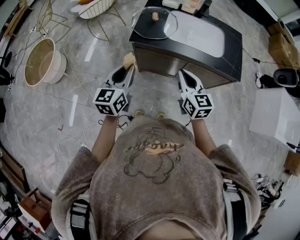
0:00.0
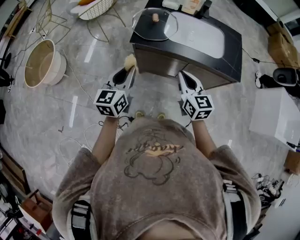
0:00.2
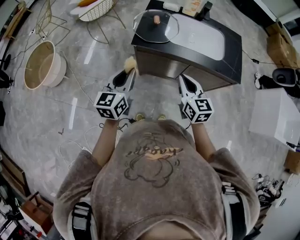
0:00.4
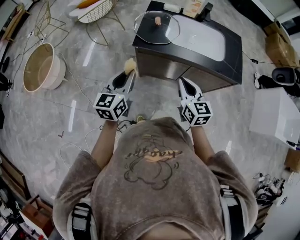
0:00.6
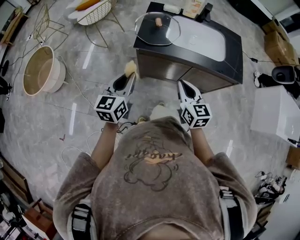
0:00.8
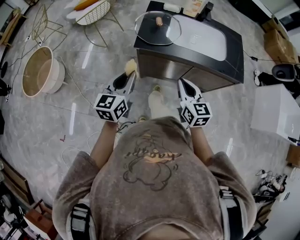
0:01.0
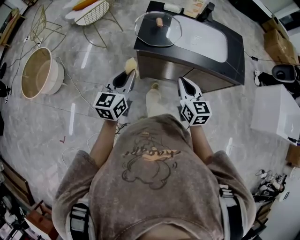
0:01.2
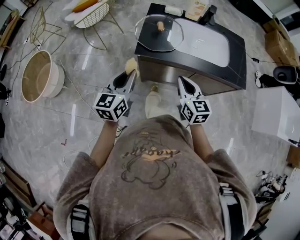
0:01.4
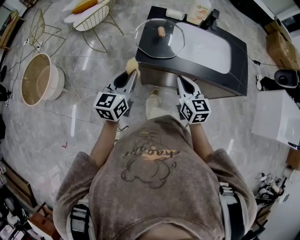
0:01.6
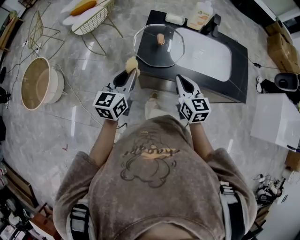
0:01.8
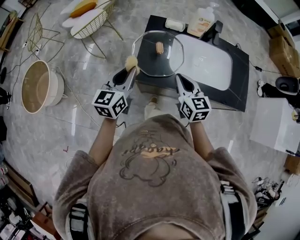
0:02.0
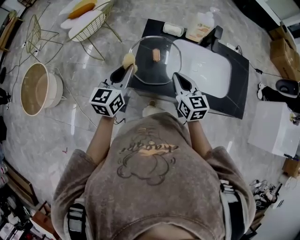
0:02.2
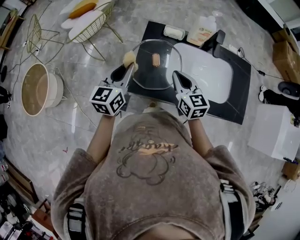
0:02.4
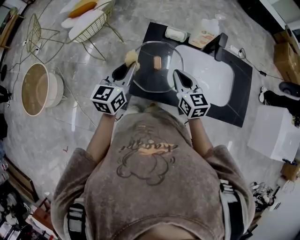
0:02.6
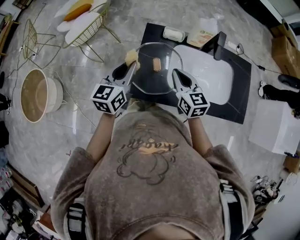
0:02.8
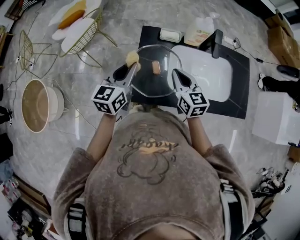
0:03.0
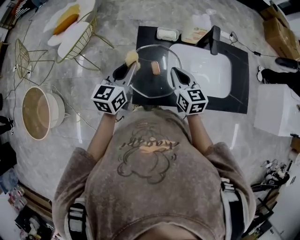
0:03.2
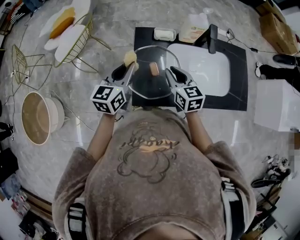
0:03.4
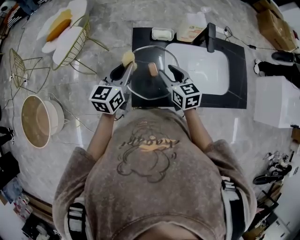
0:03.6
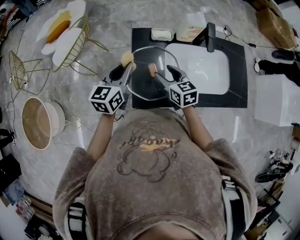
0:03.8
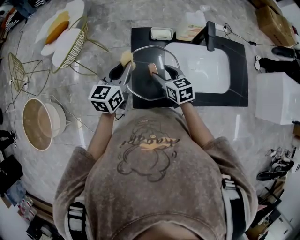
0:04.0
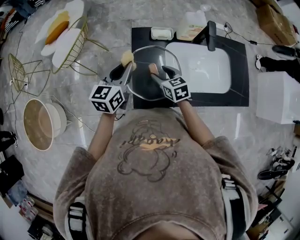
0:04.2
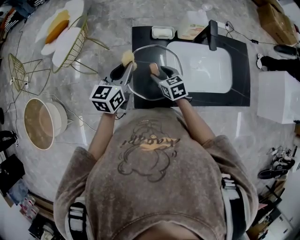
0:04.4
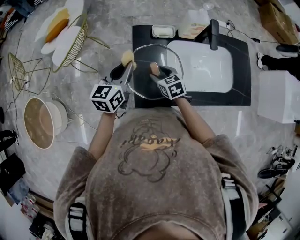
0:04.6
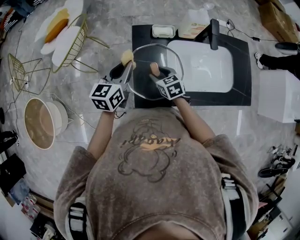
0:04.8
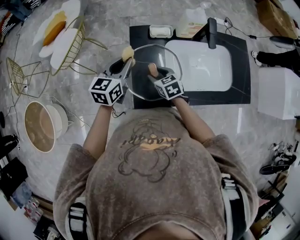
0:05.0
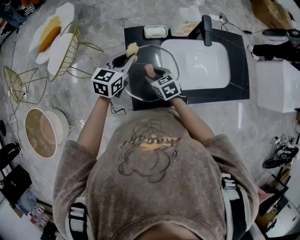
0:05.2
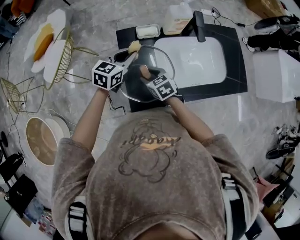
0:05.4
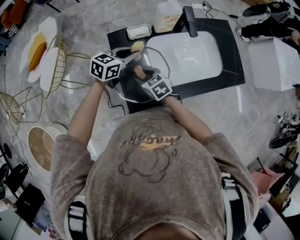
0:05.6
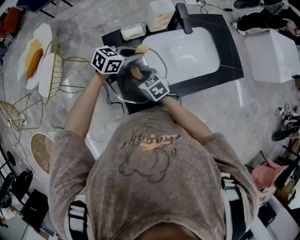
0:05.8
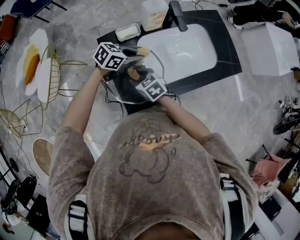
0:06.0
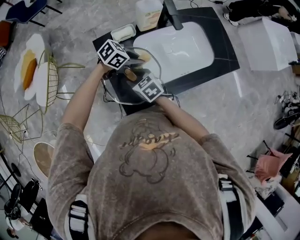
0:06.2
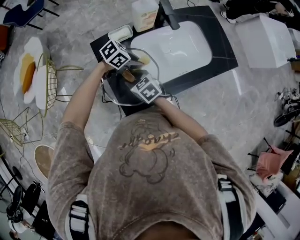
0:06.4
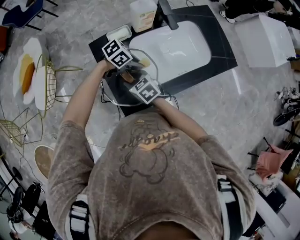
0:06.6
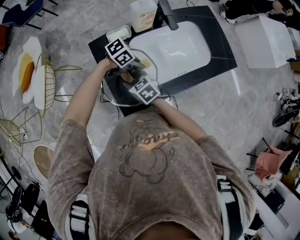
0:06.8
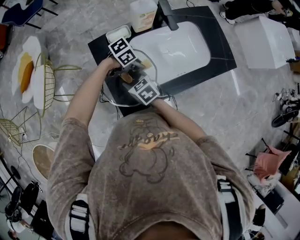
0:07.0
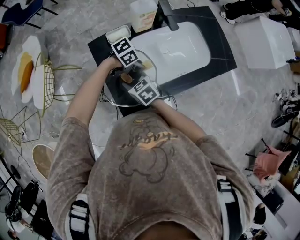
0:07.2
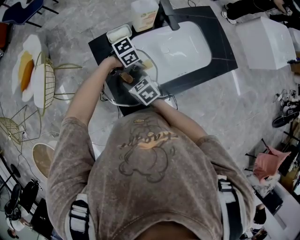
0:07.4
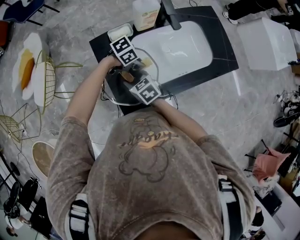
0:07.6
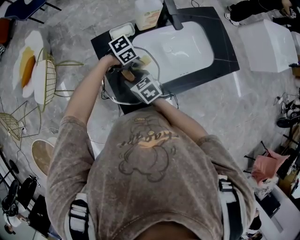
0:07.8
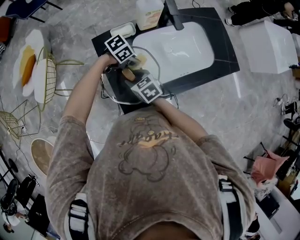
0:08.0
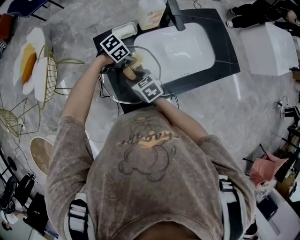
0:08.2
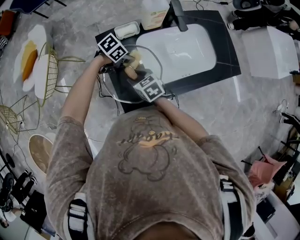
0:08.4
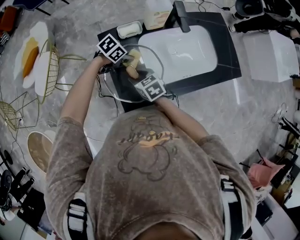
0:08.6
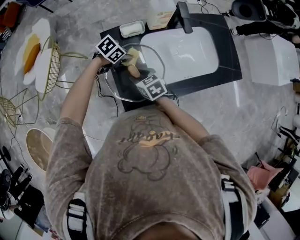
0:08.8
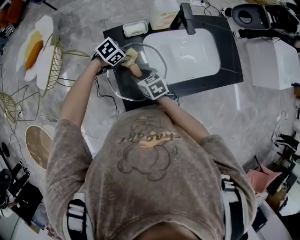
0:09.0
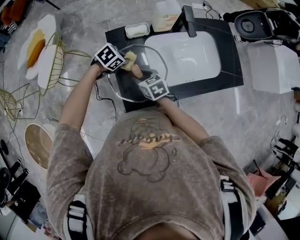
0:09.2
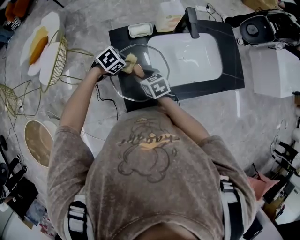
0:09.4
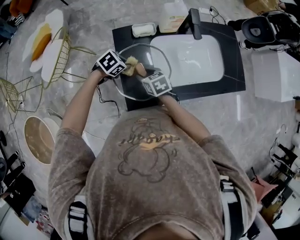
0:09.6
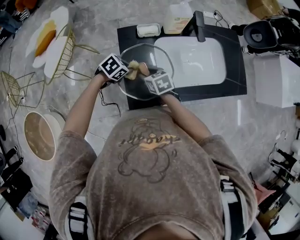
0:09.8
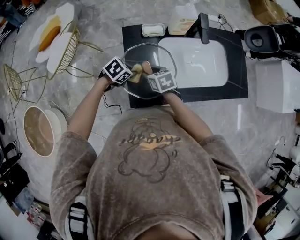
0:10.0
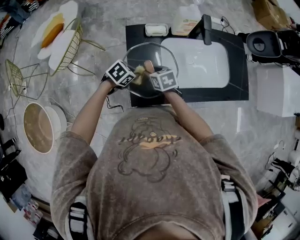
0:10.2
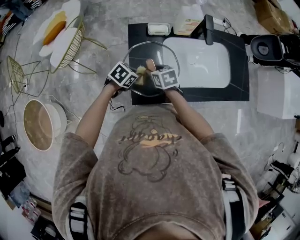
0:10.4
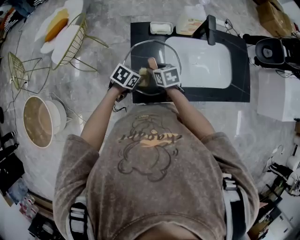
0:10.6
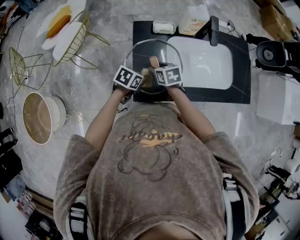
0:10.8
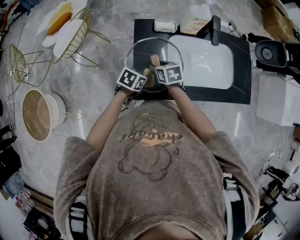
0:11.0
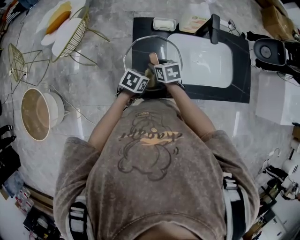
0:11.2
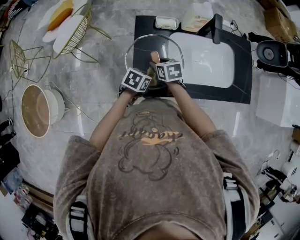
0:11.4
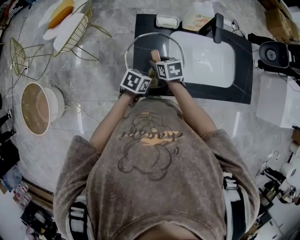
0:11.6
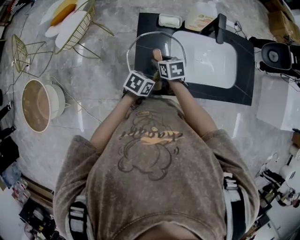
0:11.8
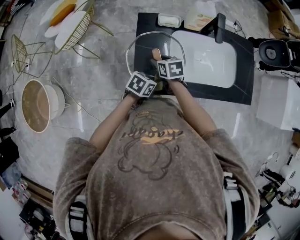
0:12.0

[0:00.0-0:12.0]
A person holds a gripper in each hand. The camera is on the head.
0:00.0 to 0:01.6: Both grippers travel together forward and to the left, roughly 15 cm.
0:01.6 to 0:03.0: The grippers both shift forward by about 30 cm.
0:03.0 to 0:04.4: The right gripper goes roughly 15 cm downward and to the left, changes its angle by about 20 degrees, and opens, while the left gripper goes roughly 5 cm forward.
0:04.4 to 0:06.0: The left gripper changes place by some 20 cm, and changes its angle by approximately 70 degrees.
0:06.0 to 0:07.6: The left gripper travels downward by about 5 cm, and changes its angle by some 30 degrees.
0:07.6 to 0:09.0: The left gripper changes place by approximately 10 cm, and changes its angle by approximately 20 degrees.
0:09.0 to 0:10.4: The left gripper shifts by about 10 cm, and swivels some 20 degrees.
0:10.4 to 0:12.0: The left gripper is displaced to the right and backward by about 10 cm.

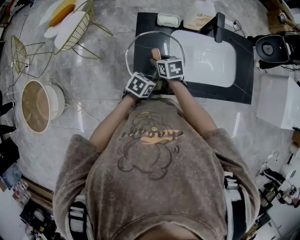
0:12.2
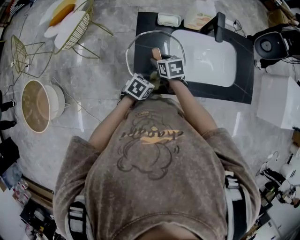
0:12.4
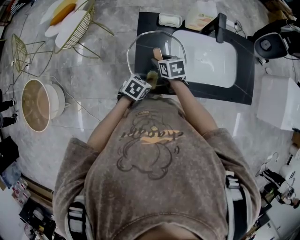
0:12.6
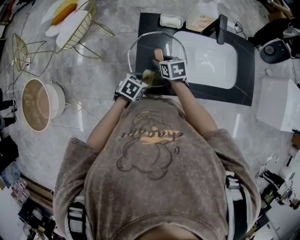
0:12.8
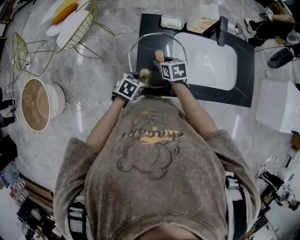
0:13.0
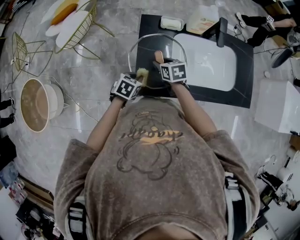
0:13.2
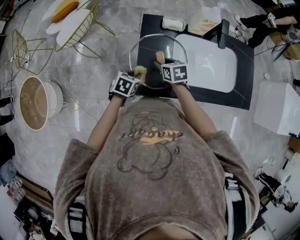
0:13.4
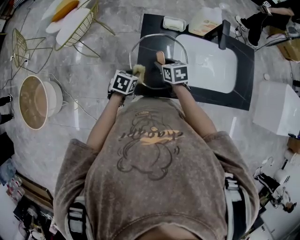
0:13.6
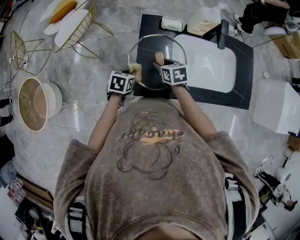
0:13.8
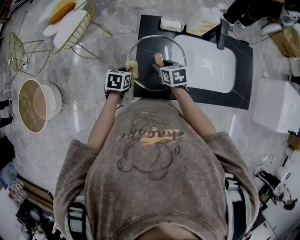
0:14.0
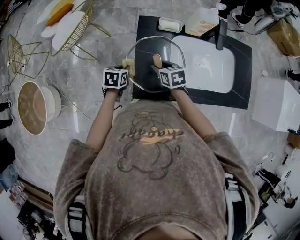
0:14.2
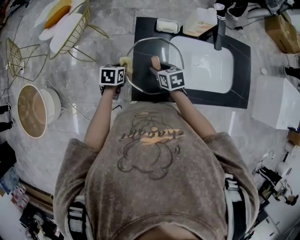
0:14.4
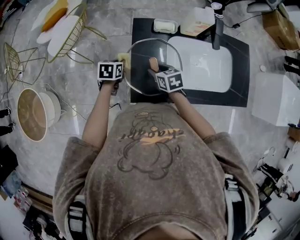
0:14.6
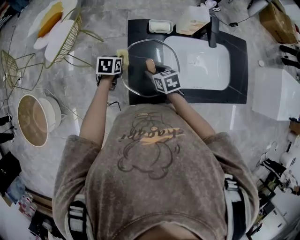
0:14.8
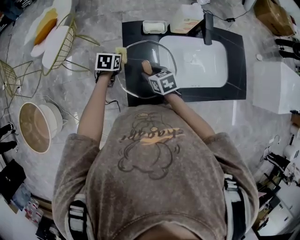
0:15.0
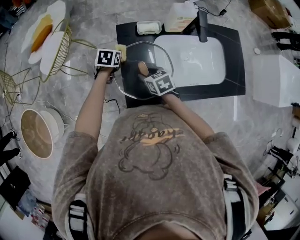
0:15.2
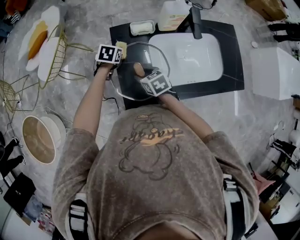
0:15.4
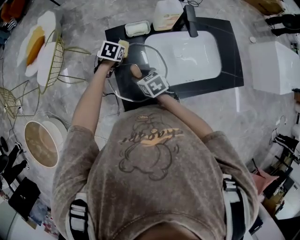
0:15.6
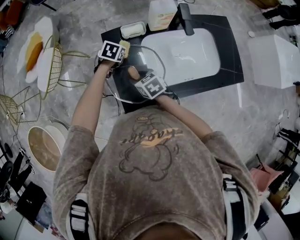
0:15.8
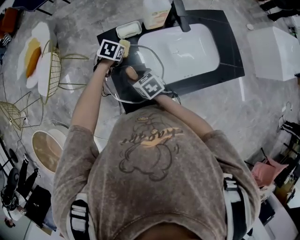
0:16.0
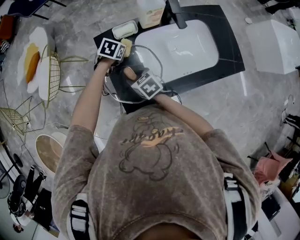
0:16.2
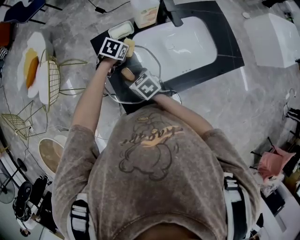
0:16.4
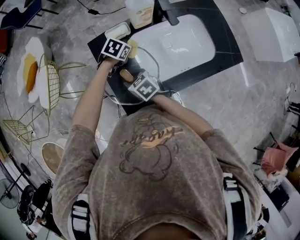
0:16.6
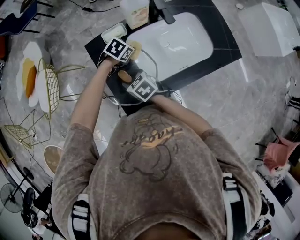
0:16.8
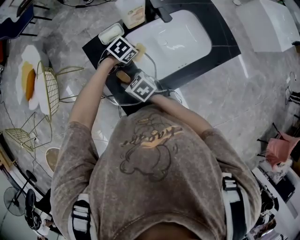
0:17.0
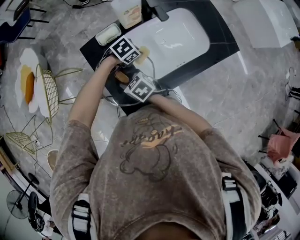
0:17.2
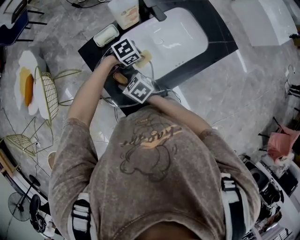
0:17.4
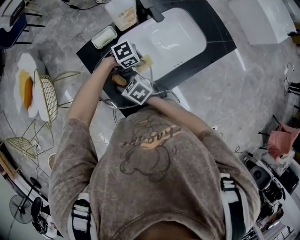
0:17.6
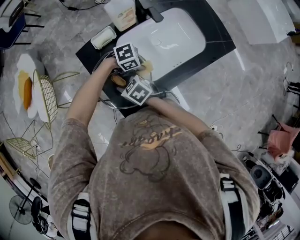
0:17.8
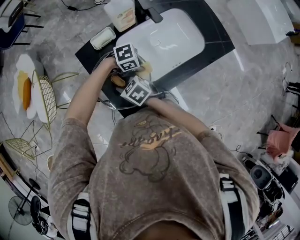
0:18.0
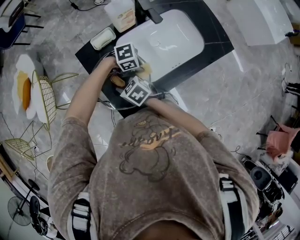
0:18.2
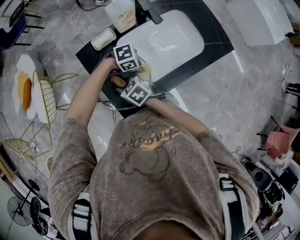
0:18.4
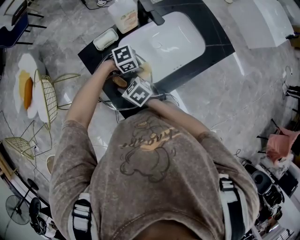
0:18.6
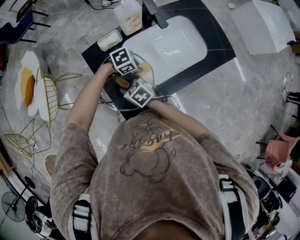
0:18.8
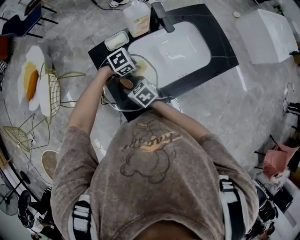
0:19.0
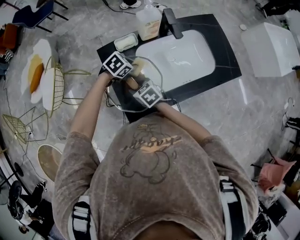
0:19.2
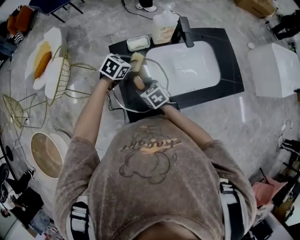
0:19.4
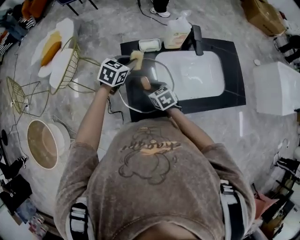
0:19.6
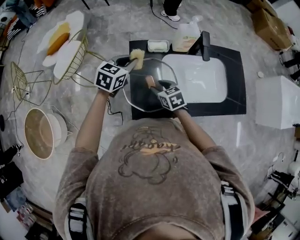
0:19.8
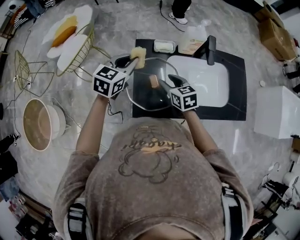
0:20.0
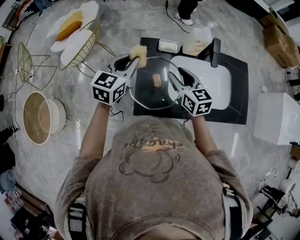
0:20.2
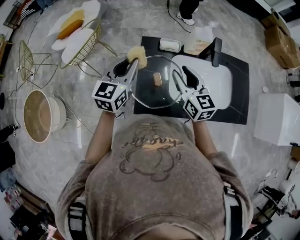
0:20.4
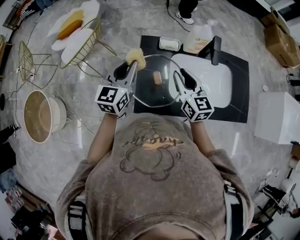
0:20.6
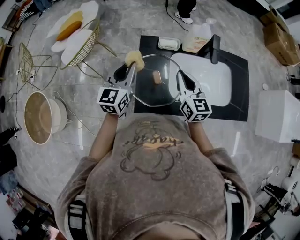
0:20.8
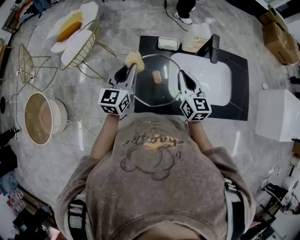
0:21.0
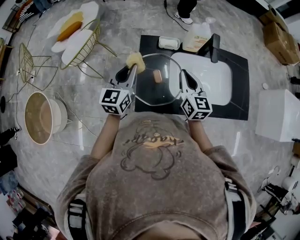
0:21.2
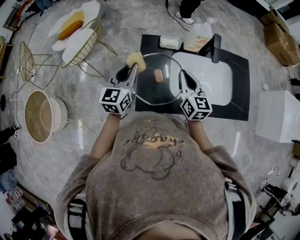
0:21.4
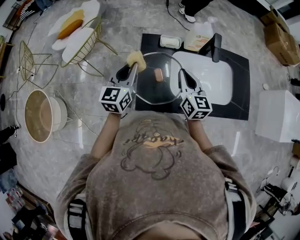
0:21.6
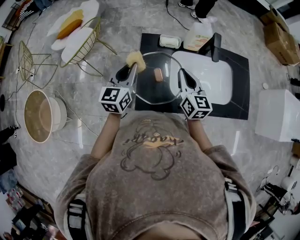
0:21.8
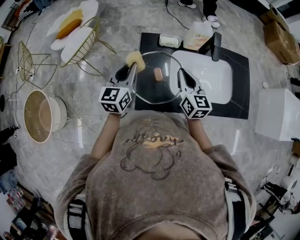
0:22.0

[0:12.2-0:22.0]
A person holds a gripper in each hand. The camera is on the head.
0:12.2 to 0:13.6: The left gripper heads to the left, covering some 10 cm.
0:13.6 to 0:15.0: The left gripper shifts about 15 cm forward.
0:15.0 to 0:16.4: The left gripper goes roughly 20 cm to the right, and rotates approximately 40 degrees.
0:16.4 to 0:17.8: The left gripper shifts by approximately 20 cm, and turns by some 60 degrees.
0:17.8 to 0:19.2: The left gripper shifts by about 15 cm, and swivels approximately 40 degrees.
0:19.2 to 0:20.6: The two grippers go about 20 cm upward. The right gripper tips its fingers upward by about 40 degrees, and closes its fingers. Meanwhile the left gripper tips its fingers upward by about 50 degrees.
0:20.6 to 0:22.0: The right gripper closes up.

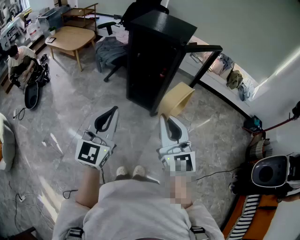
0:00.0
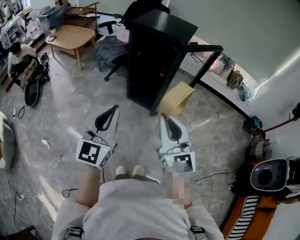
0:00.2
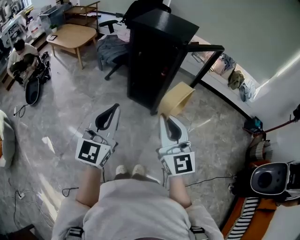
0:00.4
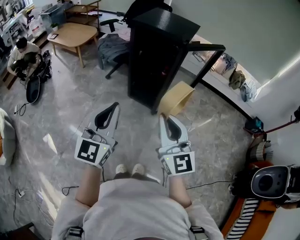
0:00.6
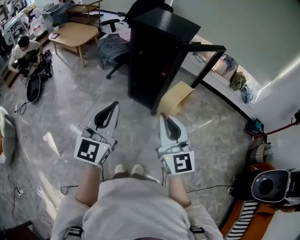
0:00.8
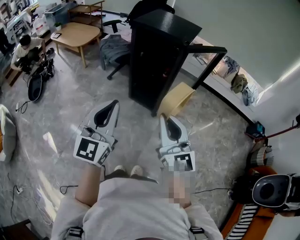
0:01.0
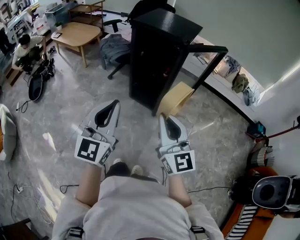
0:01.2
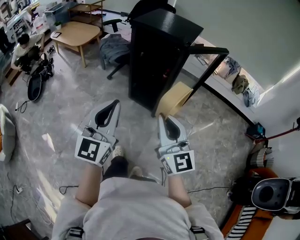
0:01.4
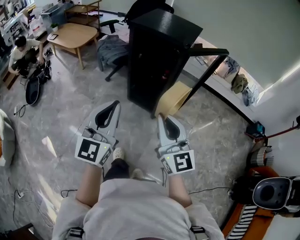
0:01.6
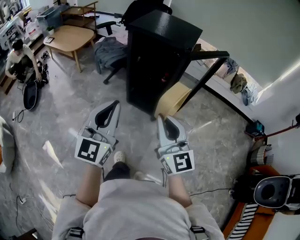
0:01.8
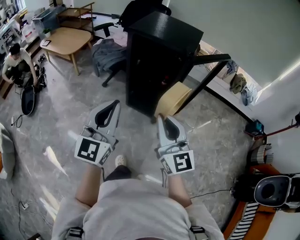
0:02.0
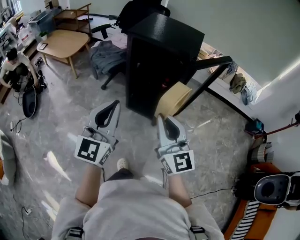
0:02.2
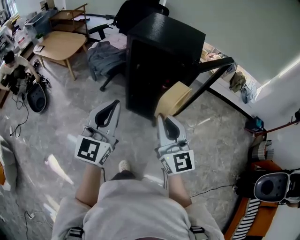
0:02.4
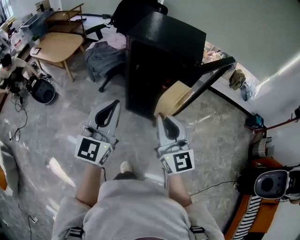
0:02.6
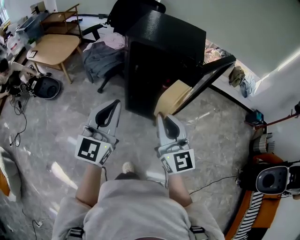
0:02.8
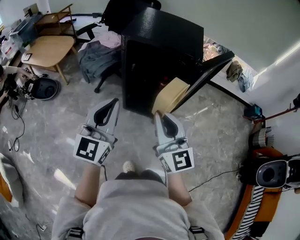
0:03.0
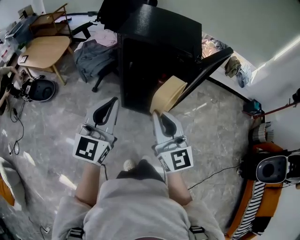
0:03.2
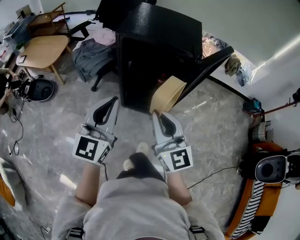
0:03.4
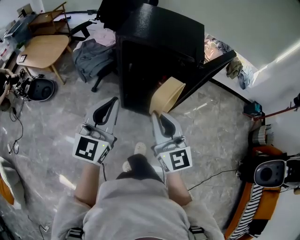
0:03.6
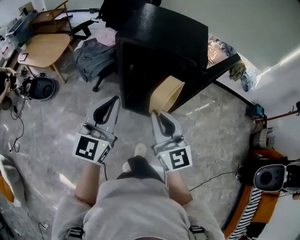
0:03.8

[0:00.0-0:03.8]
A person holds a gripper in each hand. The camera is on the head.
0:00.0 to 0:01.2: The grippers make only small movements.
0:01.2 to 0:02.6: The right gripper goes approximately 25 cm forward and to the left. Meanwhile the left gripper moves forward, some 25 cm.
0:02.6 to 0:03.8: The two grippers go about 10 cm forward.
